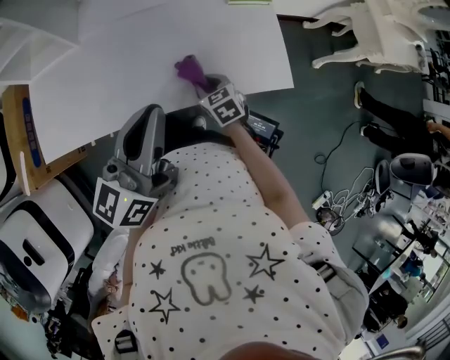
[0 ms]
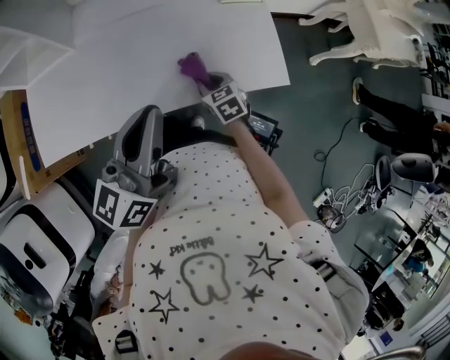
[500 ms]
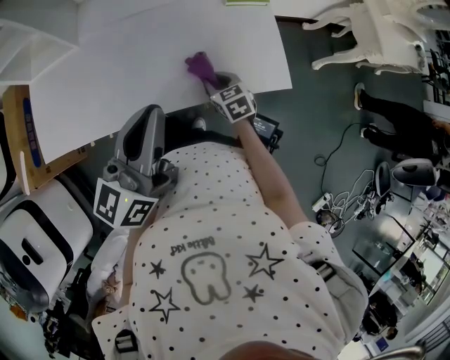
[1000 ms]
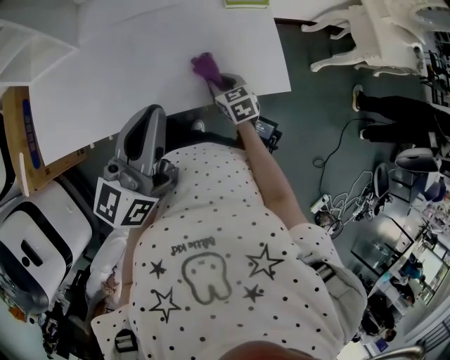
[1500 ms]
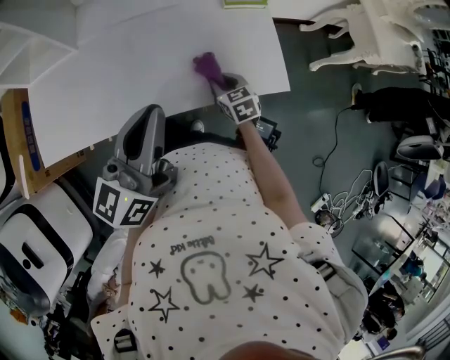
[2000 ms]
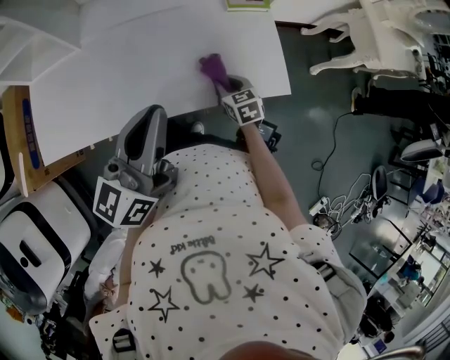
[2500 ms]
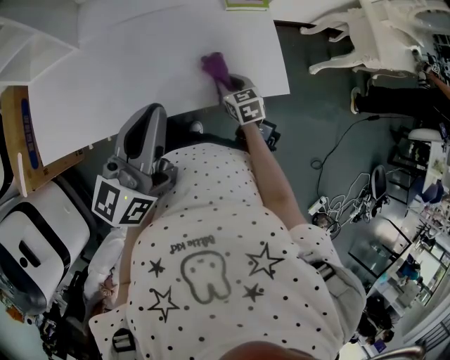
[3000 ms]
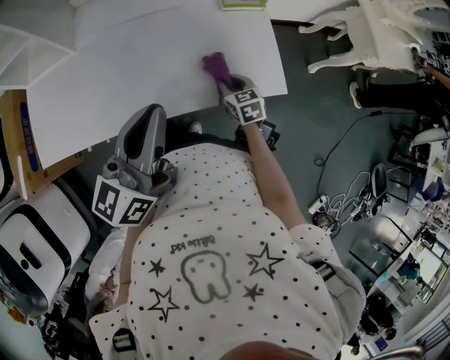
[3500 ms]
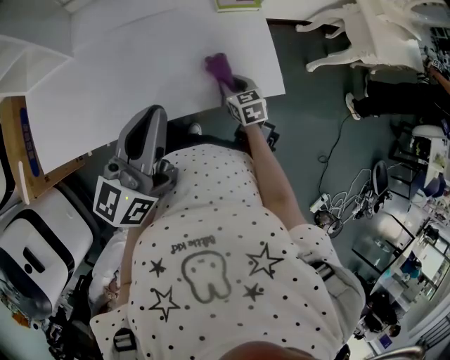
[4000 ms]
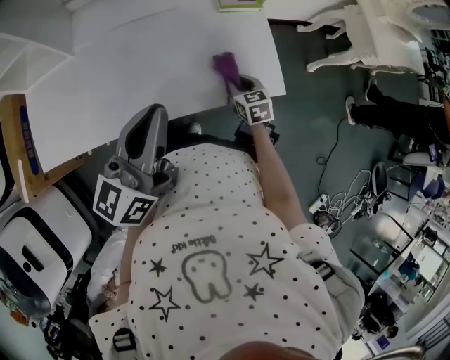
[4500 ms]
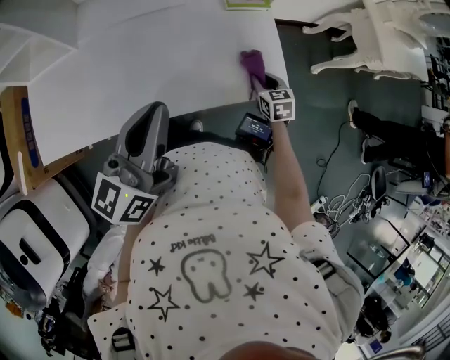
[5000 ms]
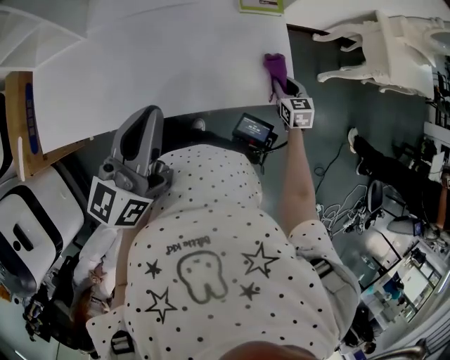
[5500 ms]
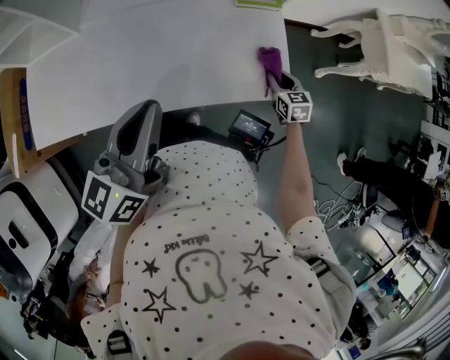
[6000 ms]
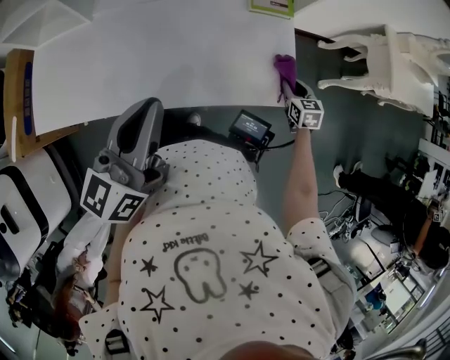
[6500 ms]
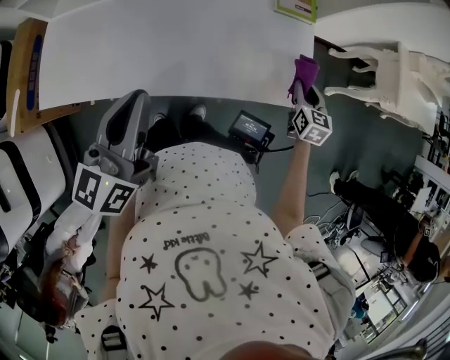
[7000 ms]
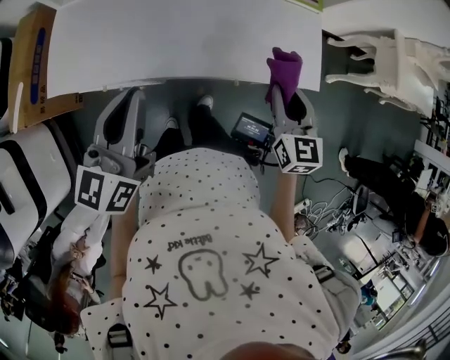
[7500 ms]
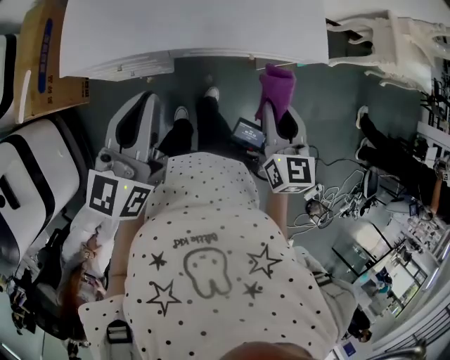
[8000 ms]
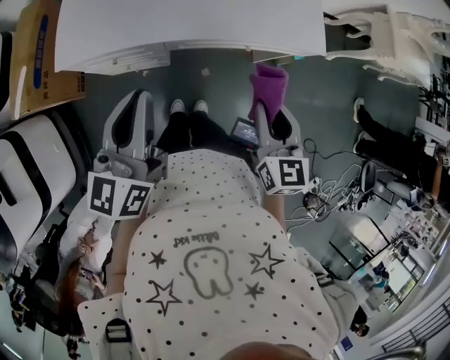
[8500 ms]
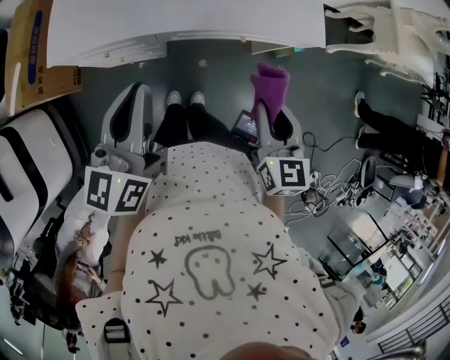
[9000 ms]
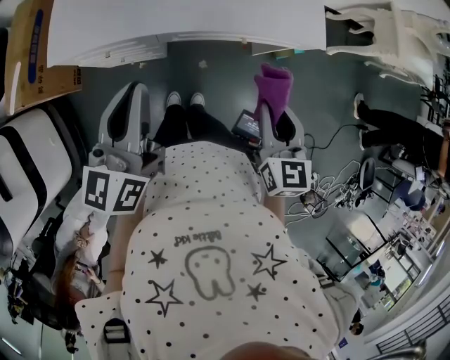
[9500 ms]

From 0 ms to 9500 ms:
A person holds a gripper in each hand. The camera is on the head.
From 0 ms to 2000 ms: The right gripper moves to the right, about 5 cm.
From 2000 ms to 4000 ms: The grippers make only small movements.
From 4000 ms to 5500 ms: The right gripper is displaced to the right by approximately 15 cm.
From 5500 ms to 7500 ms: The left gripper travels to the left and backward by roughly 15 cm, while the right gripper moves upward, to the left and backward, some 30 cm.
From 7500 ms to 9500 ms: The left gripper shifts about 10 cm backward; the right gripper moves backward, about 20 cm.

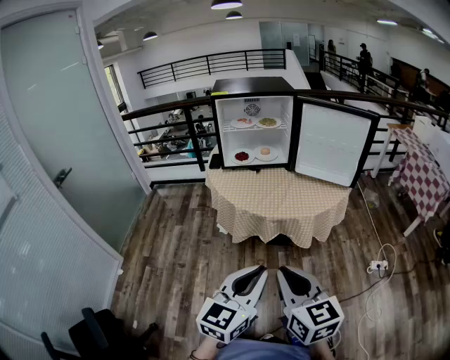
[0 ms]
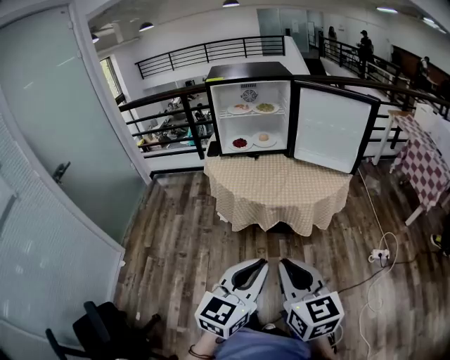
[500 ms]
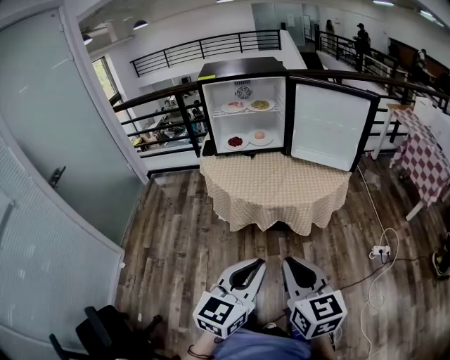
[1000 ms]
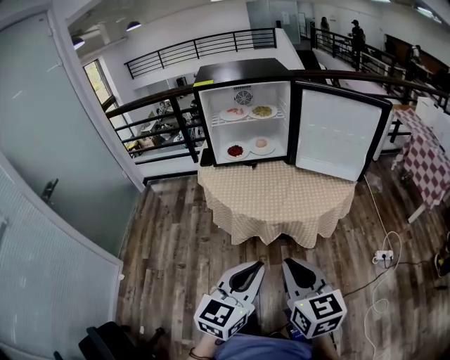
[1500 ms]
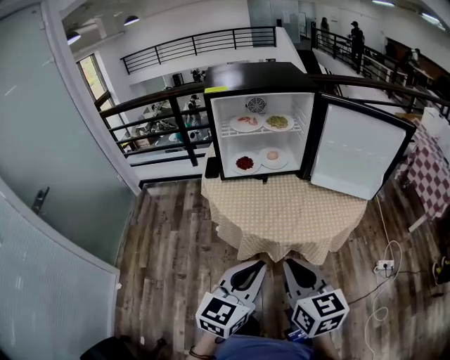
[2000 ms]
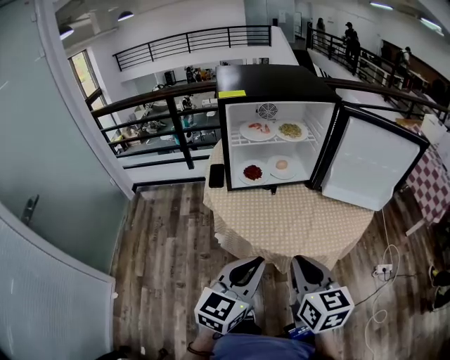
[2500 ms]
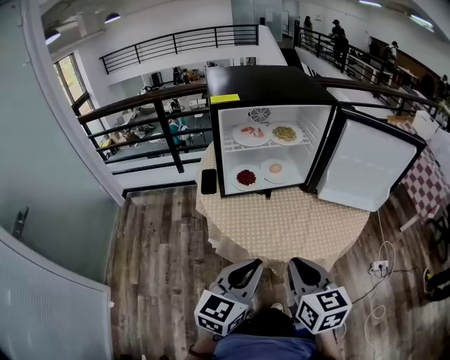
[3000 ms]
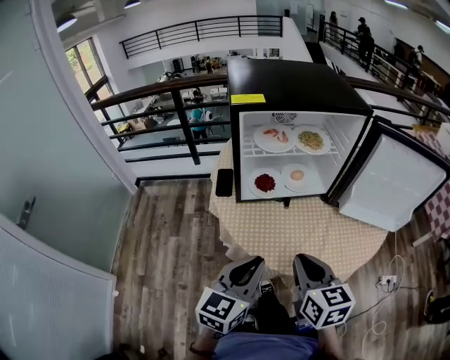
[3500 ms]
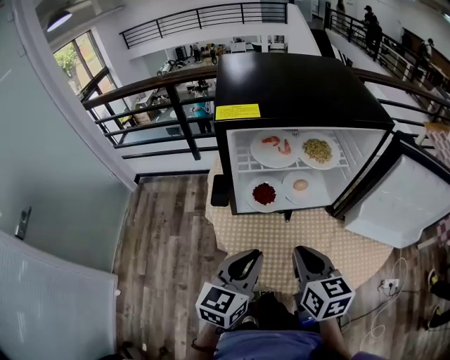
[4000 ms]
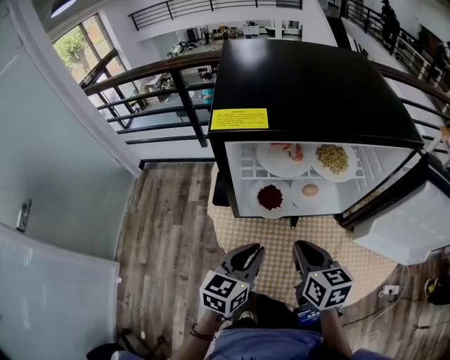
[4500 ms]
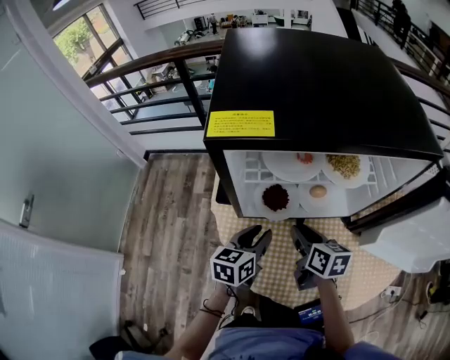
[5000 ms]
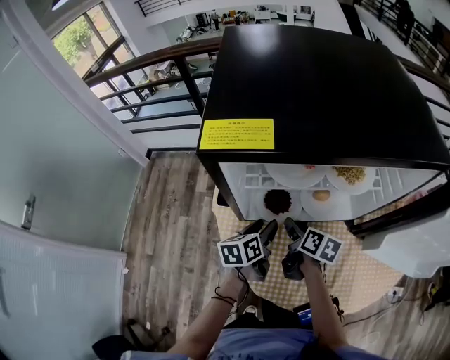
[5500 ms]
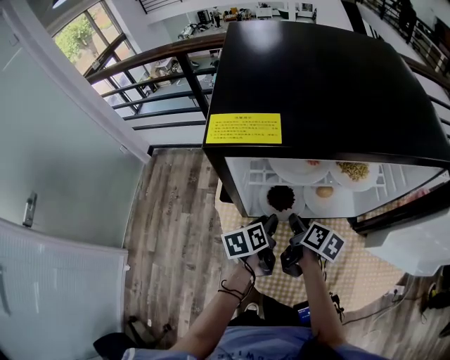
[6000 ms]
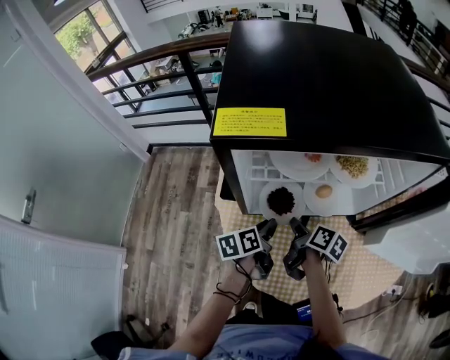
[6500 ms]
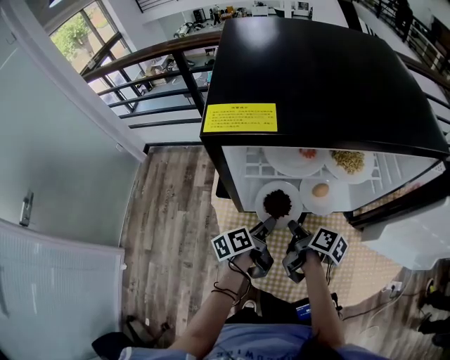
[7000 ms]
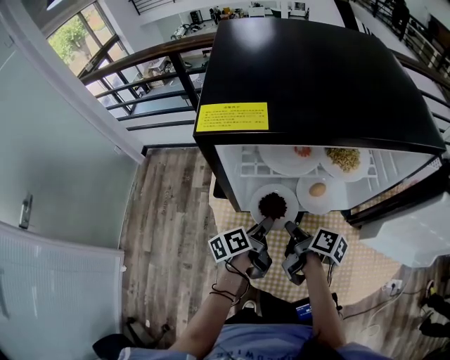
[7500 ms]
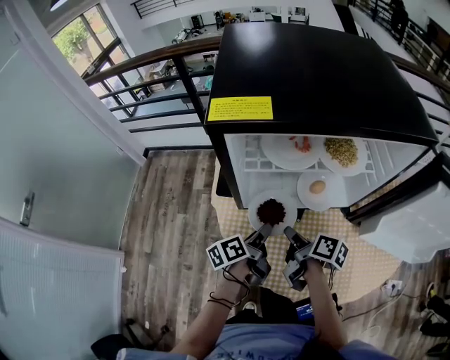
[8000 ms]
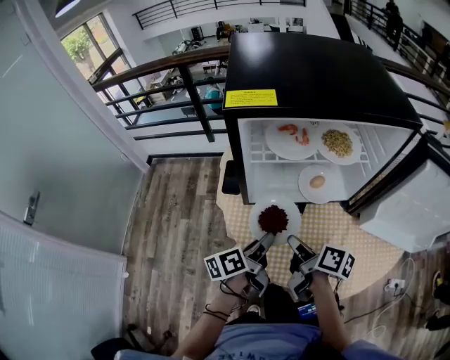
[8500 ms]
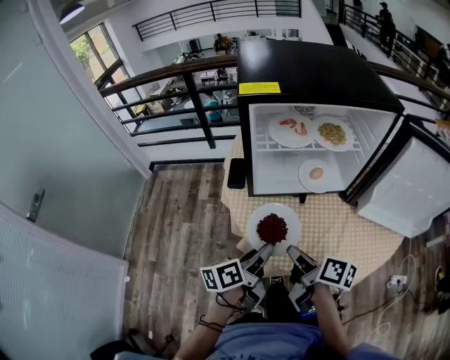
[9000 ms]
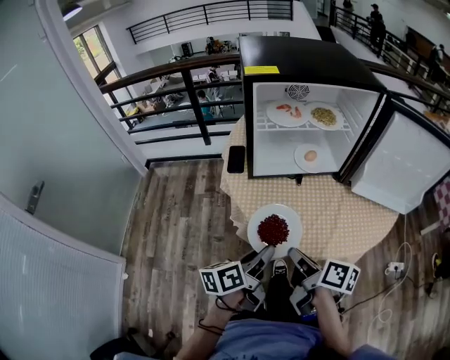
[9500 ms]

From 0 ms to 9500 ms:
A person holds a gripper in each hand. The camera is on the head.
From 0 ms to 2000 ms: The two grippers go some 25 cm forward.
From 2000 ms to 4000 ms: The right gripper shifts roughly 30 cm forward; the left gripper heads forward and to the left, covering about 30 cm.
From 4000 ms to 5500 ms: The grippers both shift forward and downward by approximately 25 cm. The left gripper swivels roughly 40 degrees, and opens up. The right gripper rotates roughly 40 degrees, and opens its fingers.
From 5500 ms to 7500 ms: The left gripper rotates approximately 30 degrees, and closes its fingers. Meanwhile the right gripper turns by roughly 20 degrees, and closes.
From 7500 ms to 9500 ms: Both grippers move backward, some 30 cm.

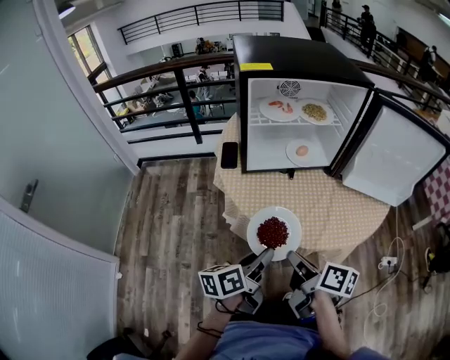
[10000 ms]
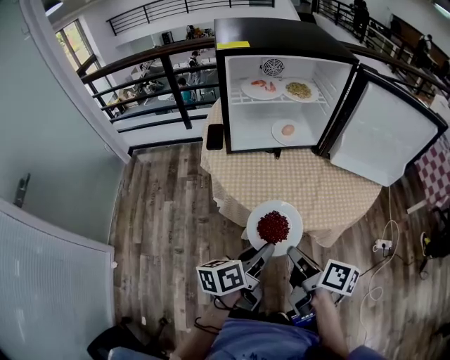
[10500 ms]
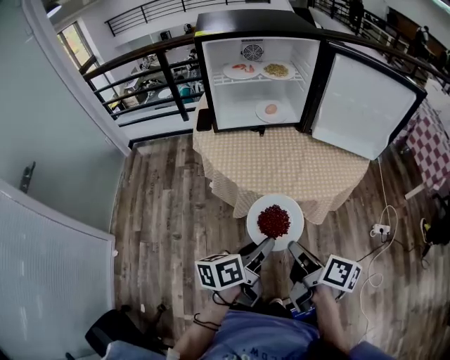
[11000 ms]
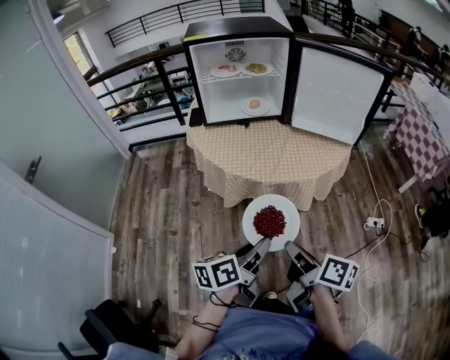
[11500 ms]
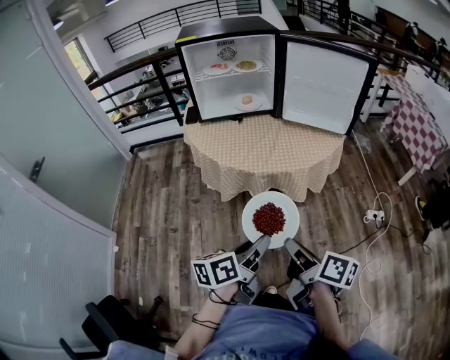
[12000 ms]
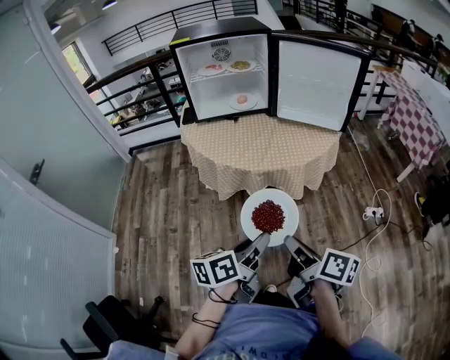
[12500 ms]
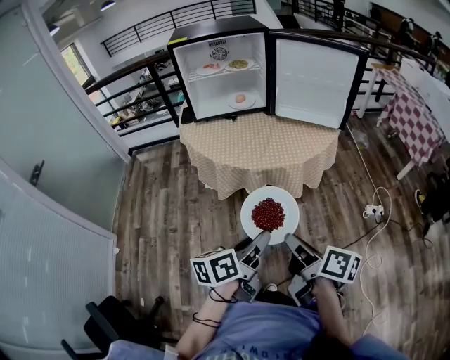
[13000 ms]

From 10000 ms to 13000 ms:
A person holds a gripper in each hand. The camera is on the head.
From 10000 ms to 11500 ms: Both grippers move backward and to the right, roughly 30 cm.
From 11500 ms to 13000 ms: The right gripper heads backward and to the right, covering some 5 cm. The left gripper moves to the right and backward, some 5 cm.

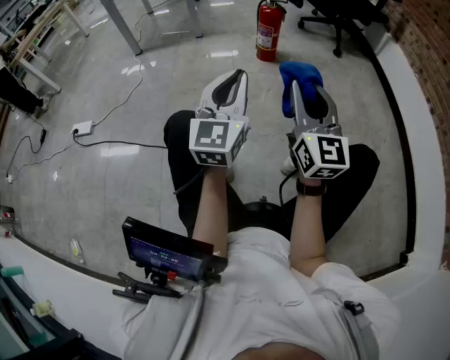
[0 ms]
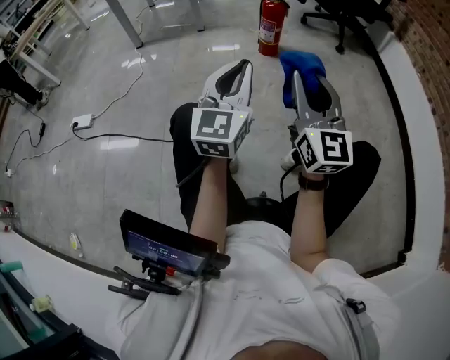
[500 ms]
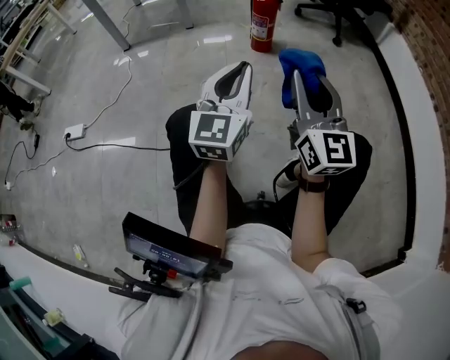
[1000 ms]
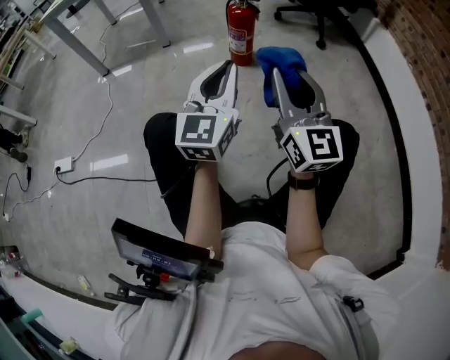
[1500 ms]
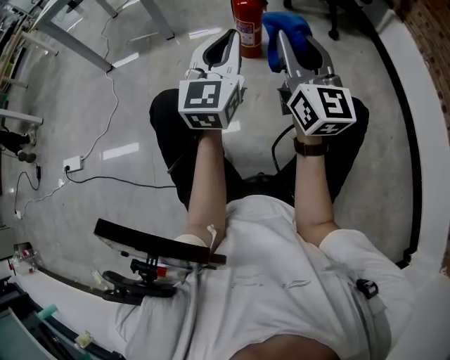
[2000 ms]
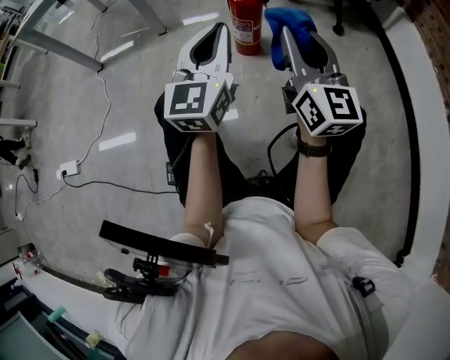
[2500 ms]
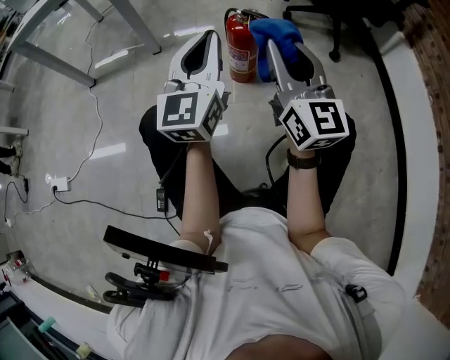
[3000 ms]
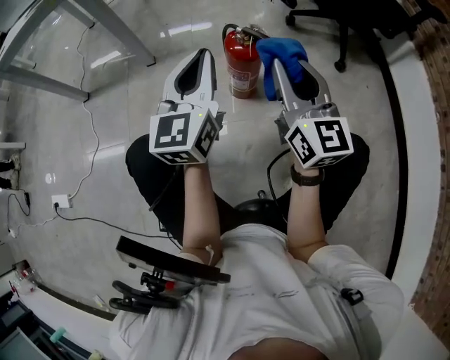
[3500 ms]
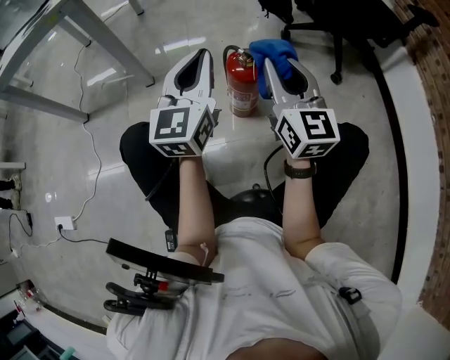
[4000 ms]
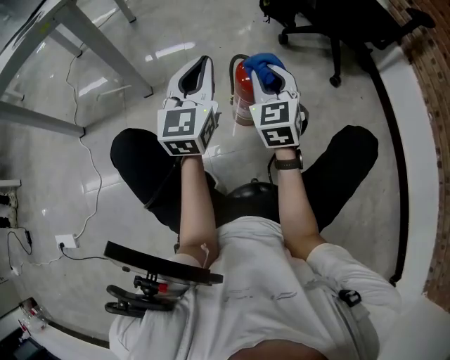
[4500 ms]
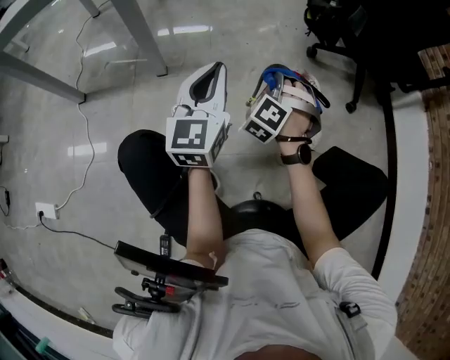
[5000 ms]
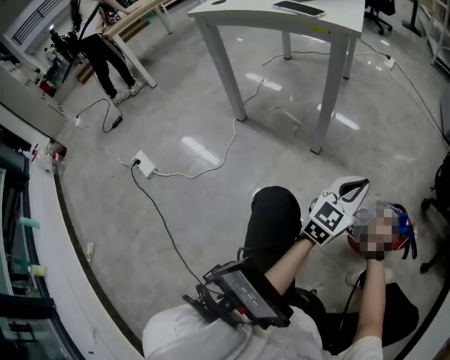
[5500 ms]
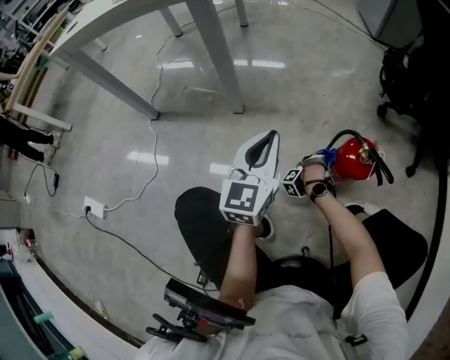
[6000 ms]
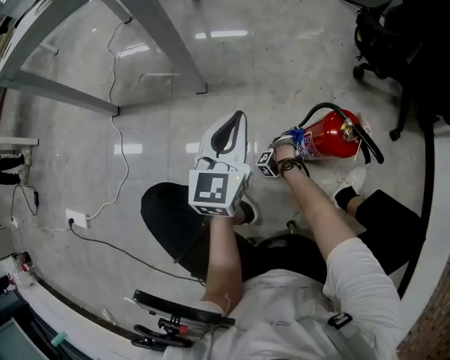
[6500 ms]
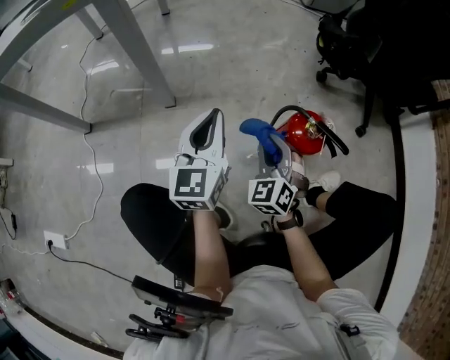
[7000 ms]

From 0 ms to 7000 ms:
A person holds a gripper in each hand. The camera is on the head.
From 0 ms to 2000 ms: The two grippers go approximately 30 cm forward.
From 2000 ms to 3500 ms: The grippers both shift forward by approximately 25 cm.
From 3500 ms to 5000 ms: The right gripper is displaced downward, forward and to the left by approximately 30 cm, and points its fingers roughly 40 degrees further downward, while the left gripper travels to the left, forward and downward by some 20 cm.
From 5000 ms to 7000 ms: The left gripper ends up approximately 10 cm from where it was, while the right gripper moves about 40 cm downward and comes back, and rotates approximately 30 degrees.
